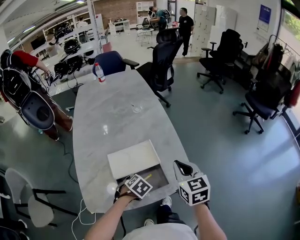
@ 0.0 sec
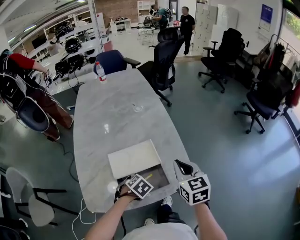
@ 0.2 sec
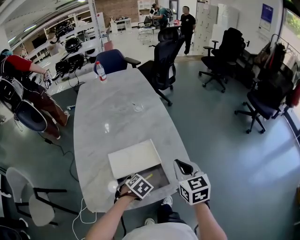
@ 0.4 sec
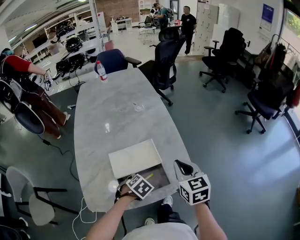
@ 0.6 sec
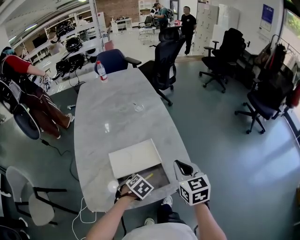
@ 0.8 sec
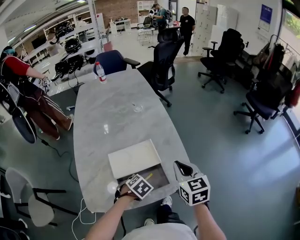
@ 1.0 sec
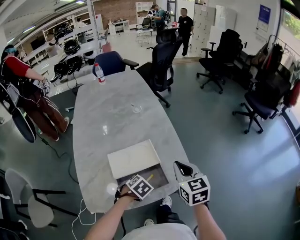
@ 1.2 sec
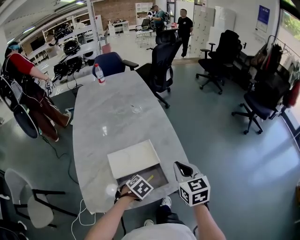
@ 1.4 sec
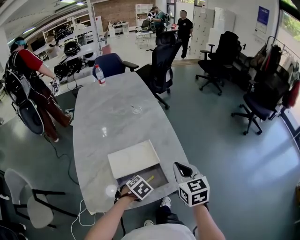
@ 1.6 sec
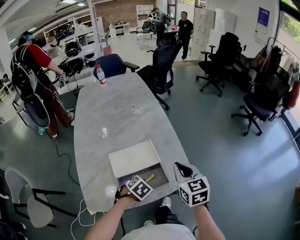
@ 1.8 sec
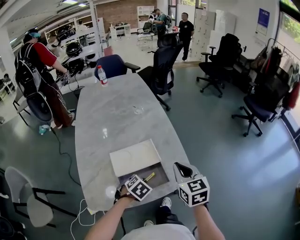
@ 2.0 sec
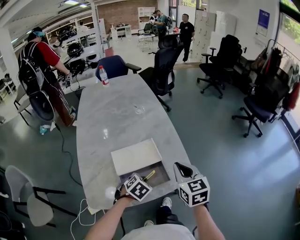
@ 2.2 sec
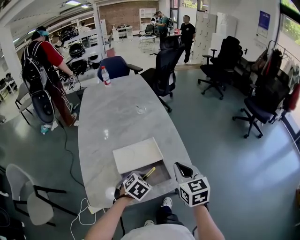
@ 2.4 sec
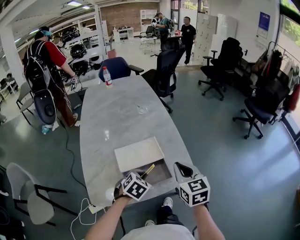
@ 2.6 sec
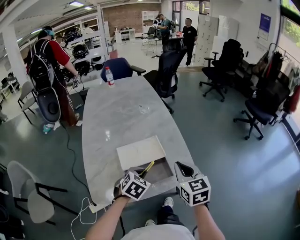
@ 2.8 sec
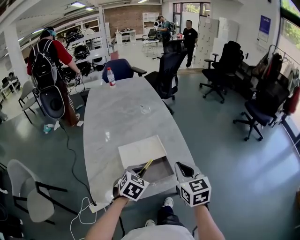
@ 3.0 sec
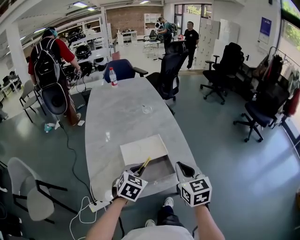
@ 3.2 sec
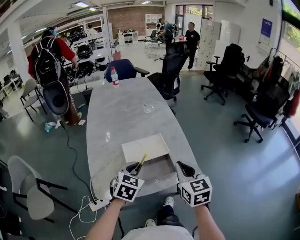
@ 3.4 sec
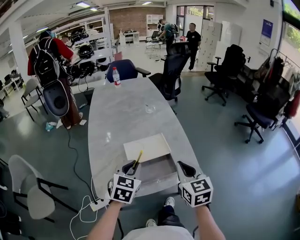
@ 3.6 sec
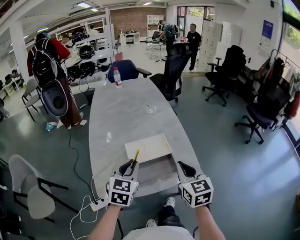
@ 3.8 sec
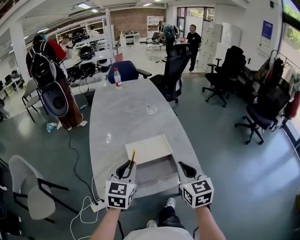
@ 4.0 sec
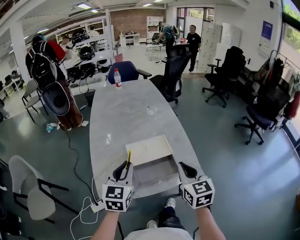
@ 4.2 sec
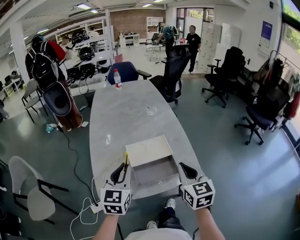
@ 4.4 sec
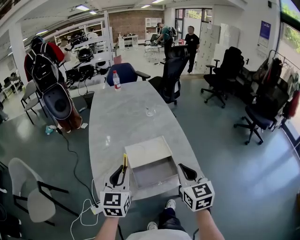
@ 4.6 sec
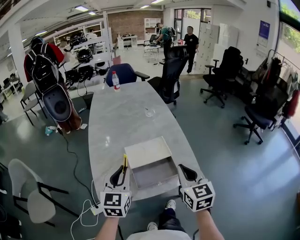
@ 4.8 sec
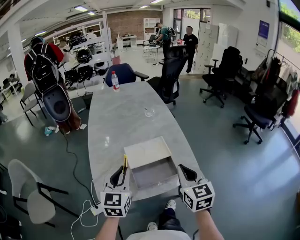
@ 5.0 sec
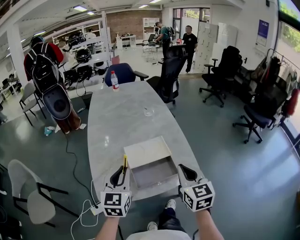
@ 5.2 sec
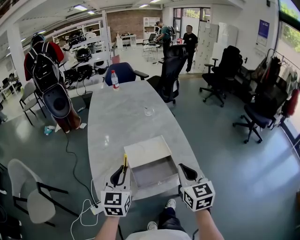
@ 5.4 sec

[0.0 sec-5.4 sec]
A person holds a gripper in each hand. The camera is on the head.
0.0 sec to 1.4 sec: The left gripper closes its fingers.
1.4 sec to 2.8 sec: The right gripper goes approximately 5 cm backward. The left gripper shifts some 10 cm upward, and rotates some 30 degrees.
2.8 sec to 4.0 sec: The right gripper moves some 5 cm. Meanwhile the left gripper heads upward and to the left, covering about 15 cm, and angles its fingers upward, by about 30 degrees.
4.0 sec to 5.4 sec: The grippers stay close to where they were, moving slightly.

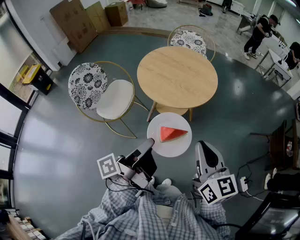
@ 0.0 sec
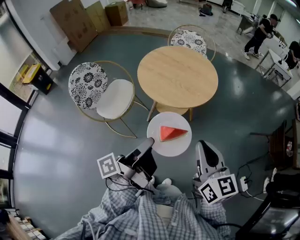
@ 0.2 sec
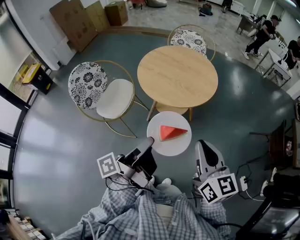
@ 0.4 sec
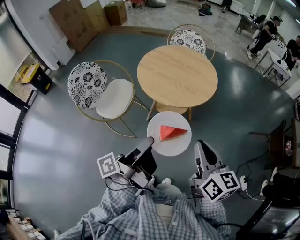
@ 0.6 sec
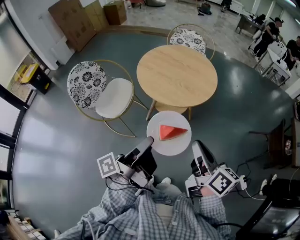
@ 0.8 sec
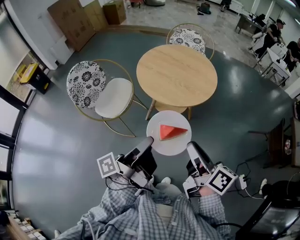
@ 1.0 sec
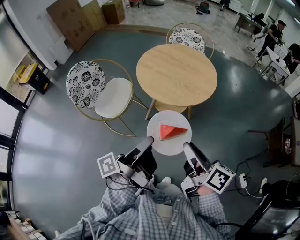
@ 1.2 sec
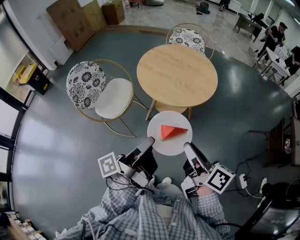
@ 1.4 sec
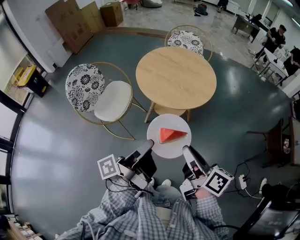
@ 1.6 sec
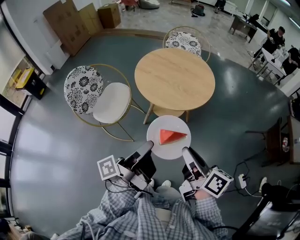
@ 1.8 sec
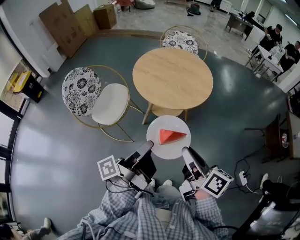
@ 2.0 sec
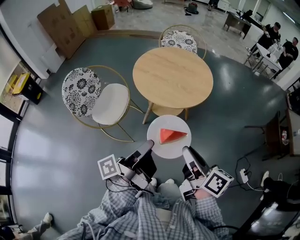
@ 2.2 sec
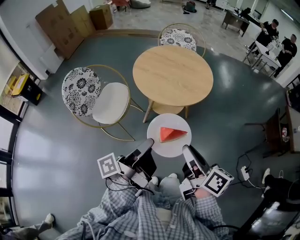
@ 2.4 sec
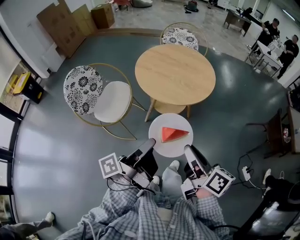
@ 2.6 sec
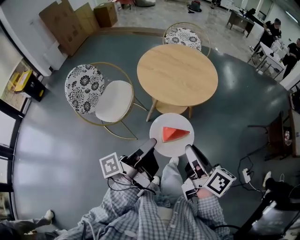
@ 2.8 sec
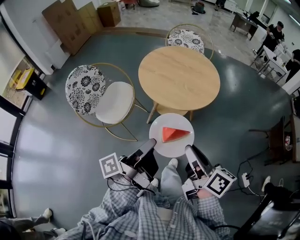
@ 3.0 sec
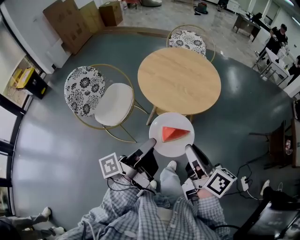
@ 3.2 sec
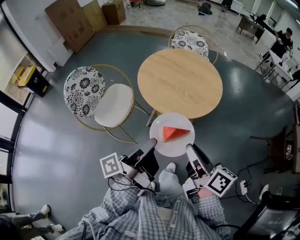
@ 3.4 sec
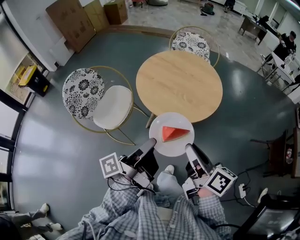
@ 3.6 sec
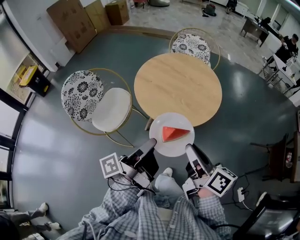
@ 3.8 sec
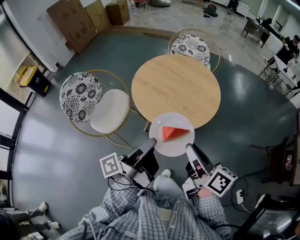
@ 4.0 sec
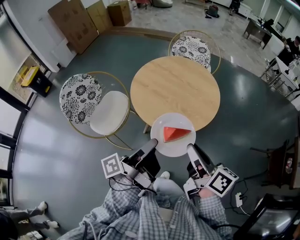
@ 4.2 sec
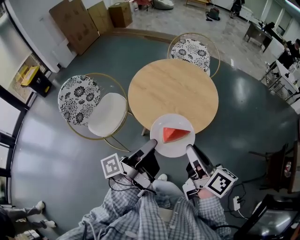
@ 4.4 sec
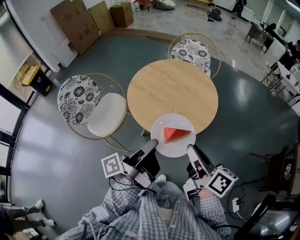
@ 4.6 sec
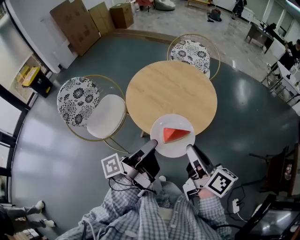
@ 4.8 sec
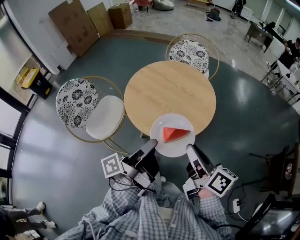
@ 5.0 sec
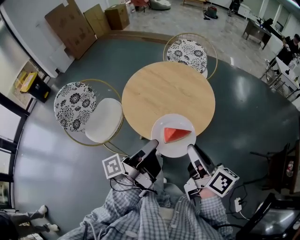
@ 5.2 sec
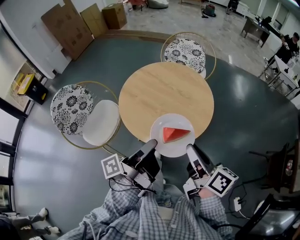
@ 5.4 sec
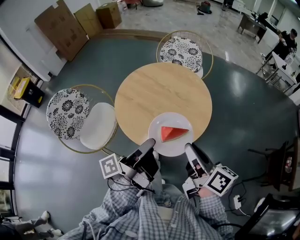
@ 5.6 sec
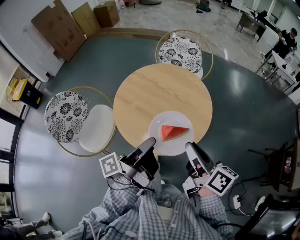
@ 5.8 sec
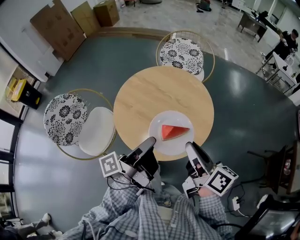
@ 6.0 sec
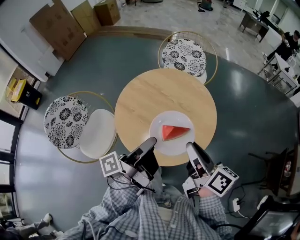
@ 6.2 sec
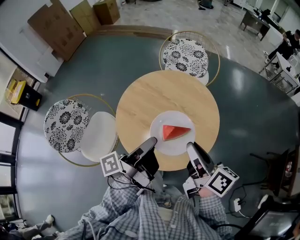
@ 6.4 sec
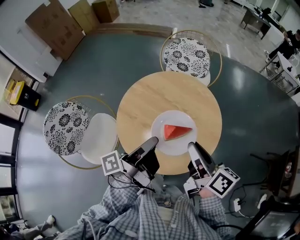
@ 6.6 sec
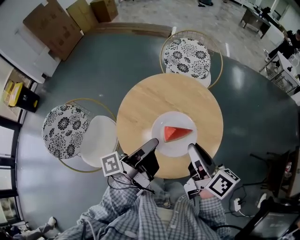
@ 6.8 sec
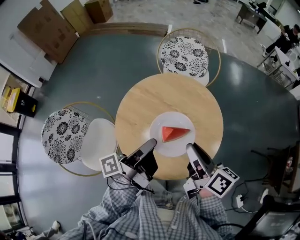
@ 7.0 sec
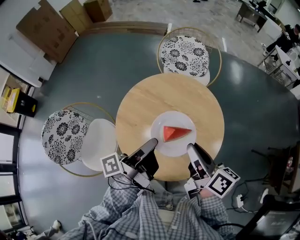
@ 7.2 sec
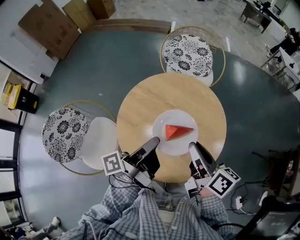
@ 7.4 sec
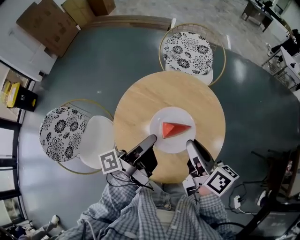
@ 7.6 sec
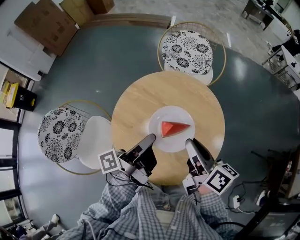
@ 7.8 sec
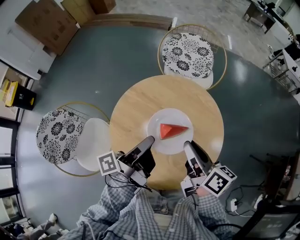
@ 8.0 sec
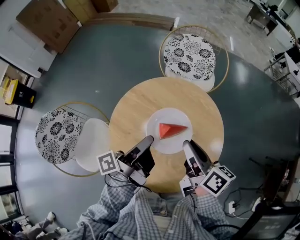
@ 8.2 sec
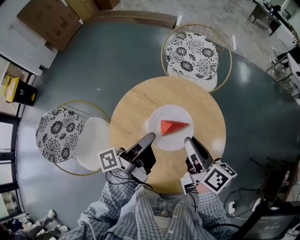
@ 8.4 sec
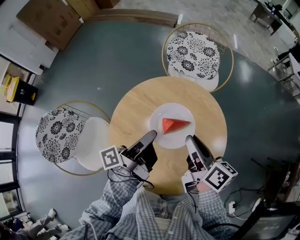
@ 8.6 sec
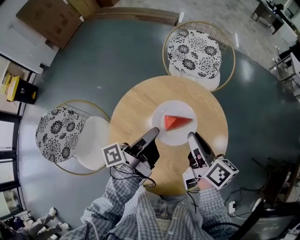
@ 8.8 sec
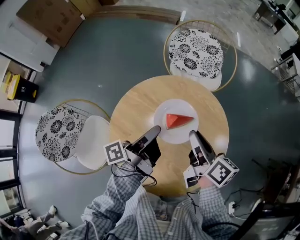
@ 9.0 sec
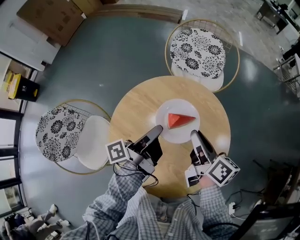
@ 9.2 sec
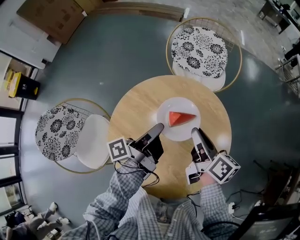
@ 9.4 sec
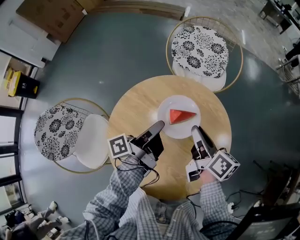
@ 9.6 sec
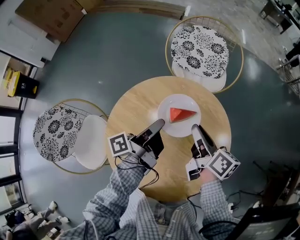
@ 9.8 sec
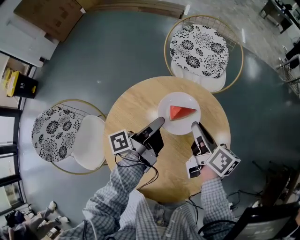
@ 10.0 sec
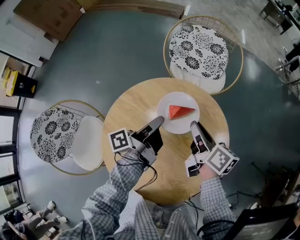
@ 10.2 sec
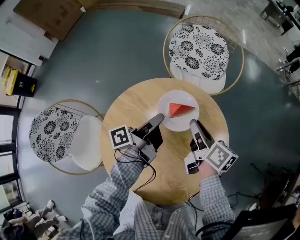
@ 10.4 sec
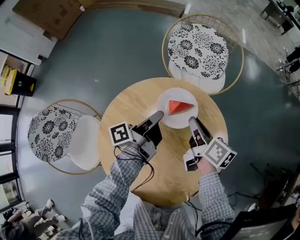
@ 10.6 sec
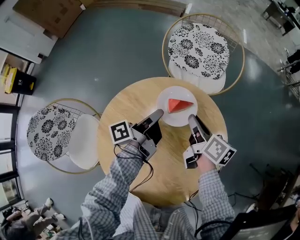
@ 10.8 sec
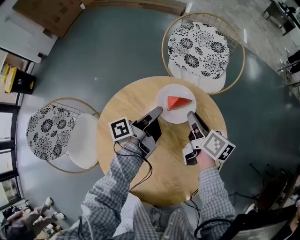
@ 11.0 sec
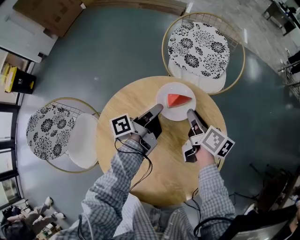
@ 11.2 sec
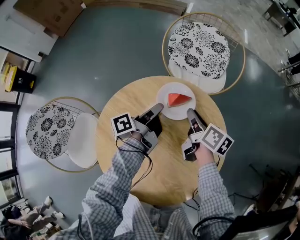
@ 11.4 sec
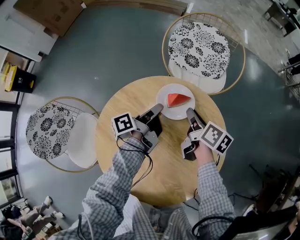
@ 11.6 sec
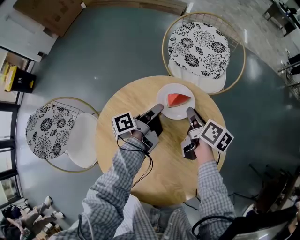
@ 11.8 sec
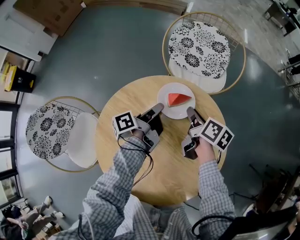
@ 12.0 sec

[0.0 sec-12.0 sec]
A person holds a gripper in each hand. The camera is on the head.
0.0 sec to 1.6 sec: The right gripper moves some 5 cm, and rotates around the line of its fingers by roughly 40 degrees, clockwise from behind.
3.0 sec to 4.4 sec: The right gripper ends up roughly 20 cm from where it was.
4.4 sec to 6.0 sec: The right gripper changes place by about 15 cm.
6.0 sec to 7.6 sec: The right gripper ends up some 15 cm from where it was.
7.6 sec to 9.0 sec: The right gripper shifts by about 10 cm.
9.0 sec to 10.4 sec: The right gripper changes place by roughly 10 cm.
10.4 sec to 12.0 sec: The right gripper moves downward, about 5 cm.

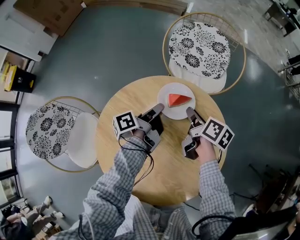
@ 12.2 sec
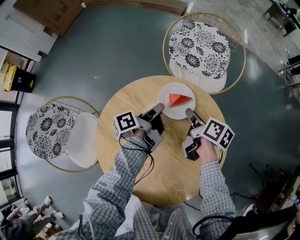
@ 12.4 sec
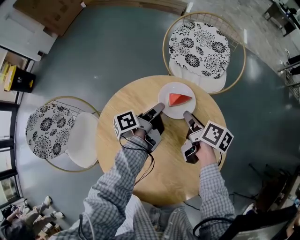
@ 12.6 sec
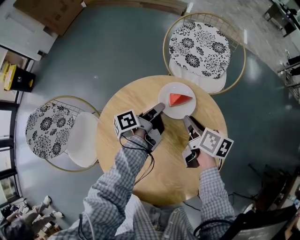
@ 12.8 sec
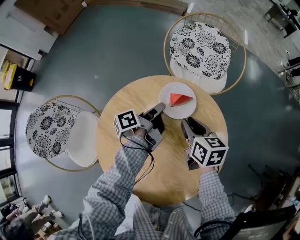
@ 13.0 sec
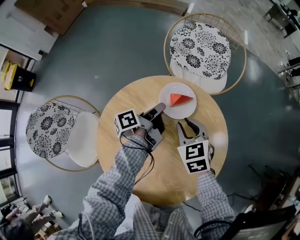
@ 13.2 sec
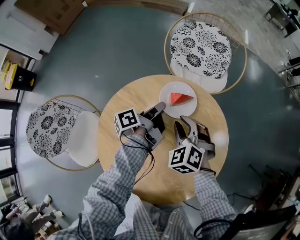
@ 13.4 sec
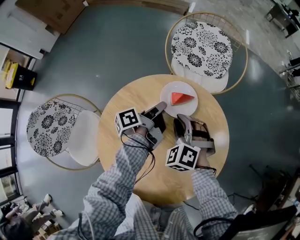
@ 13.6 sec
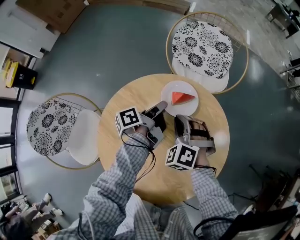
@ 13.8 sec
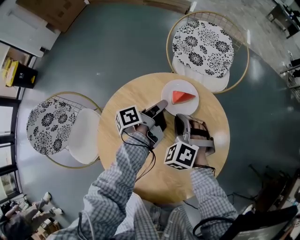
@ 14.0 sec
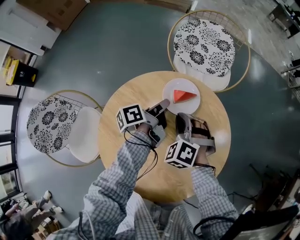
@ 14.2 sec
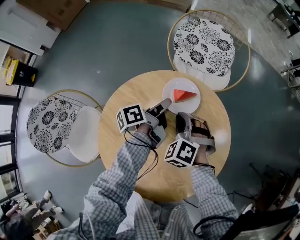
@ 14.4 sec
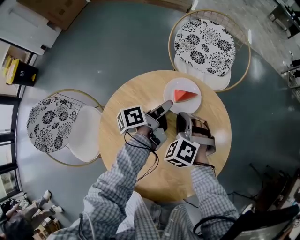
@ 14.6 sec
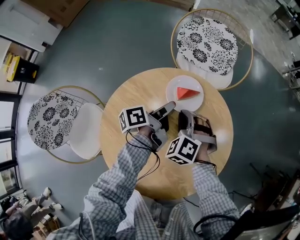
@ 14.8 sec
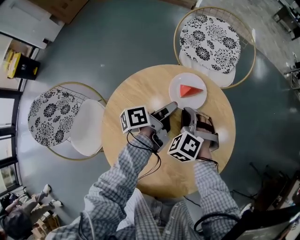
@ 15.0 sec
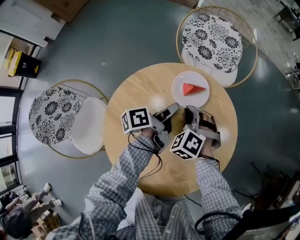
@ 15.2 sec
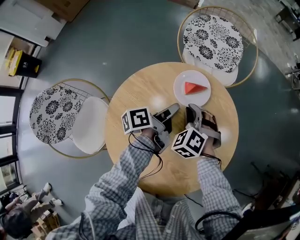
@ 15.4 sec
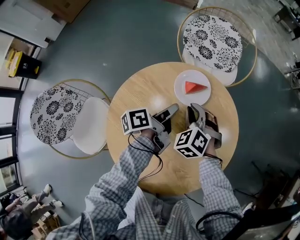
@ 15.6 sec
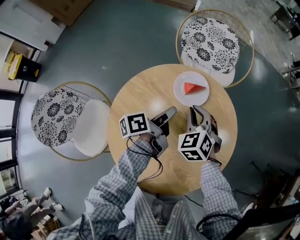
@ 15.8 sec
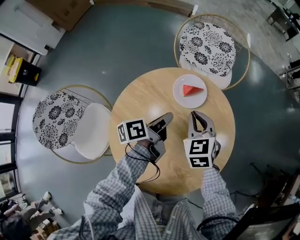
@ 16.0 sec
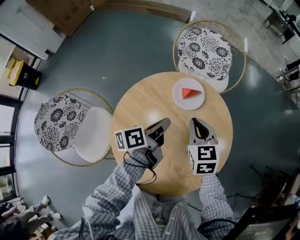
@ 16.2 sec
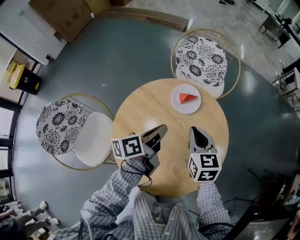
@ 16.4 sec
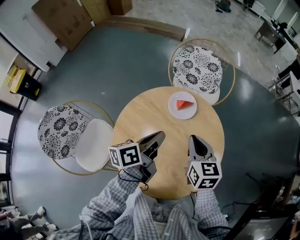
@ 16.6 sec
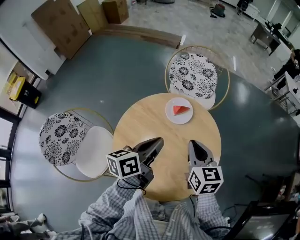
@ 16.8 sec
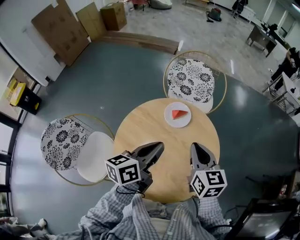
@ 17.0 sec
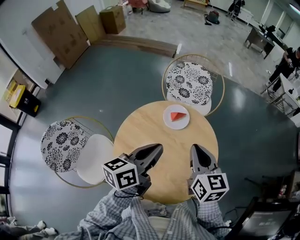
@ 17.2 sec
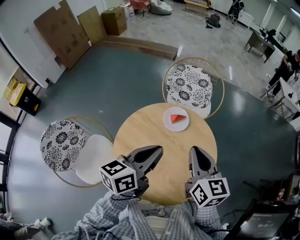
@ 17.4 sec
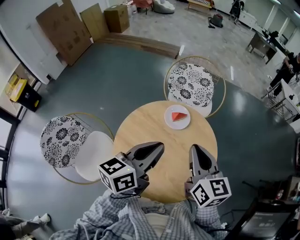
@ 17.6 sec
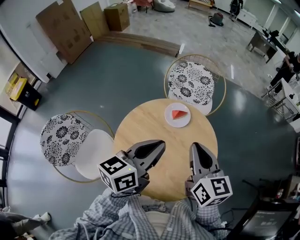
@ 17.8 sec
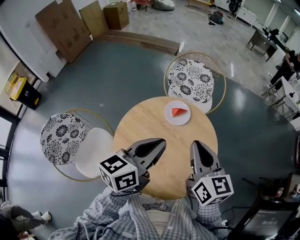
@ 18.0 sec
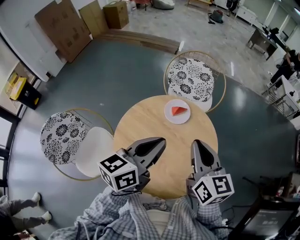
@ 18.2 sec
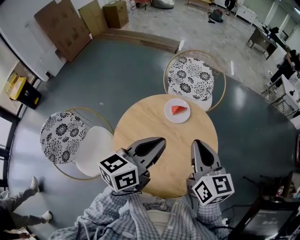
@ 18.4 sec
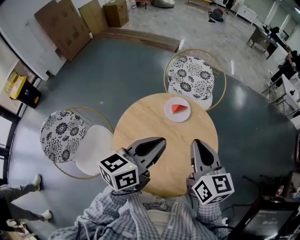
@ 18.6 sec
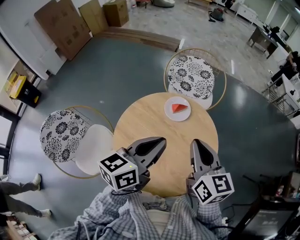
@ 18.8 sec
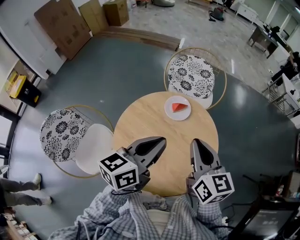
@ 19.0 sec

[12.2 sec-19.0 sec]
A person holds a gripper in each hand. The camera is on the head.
12.2 sec to 13.6 sec: The right gripper ends up roughly 10 cm from where it was, and rolls counterclockwise, seen from behind, by about 110 degrees.
15.0 sec to 16.2 sec: The right gripper heads upward, covering approximately 10 cm, and rolls clockwise, seen from behind, by some 50 degrees.
16.2 sec to 17.6 sec: The right gripper moves upward, about 20 cm, and rotates about 30 degrees.
